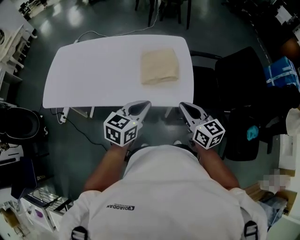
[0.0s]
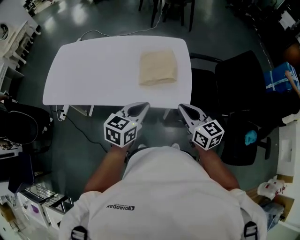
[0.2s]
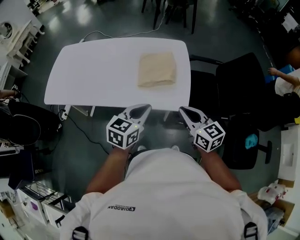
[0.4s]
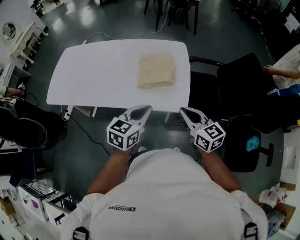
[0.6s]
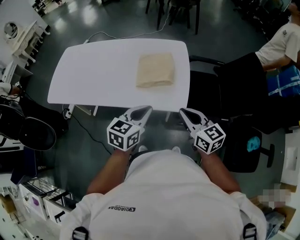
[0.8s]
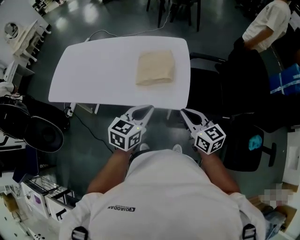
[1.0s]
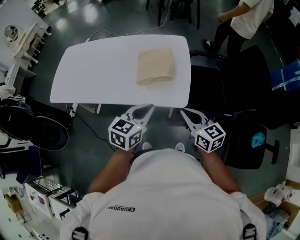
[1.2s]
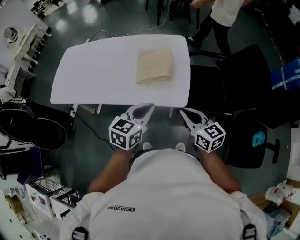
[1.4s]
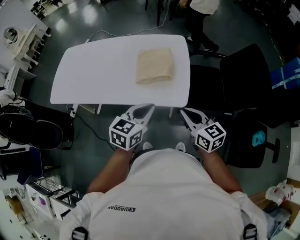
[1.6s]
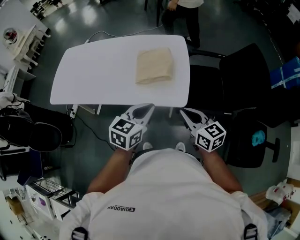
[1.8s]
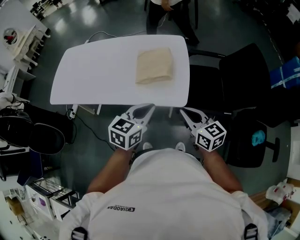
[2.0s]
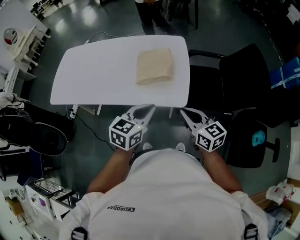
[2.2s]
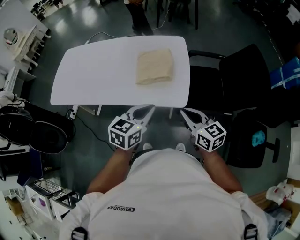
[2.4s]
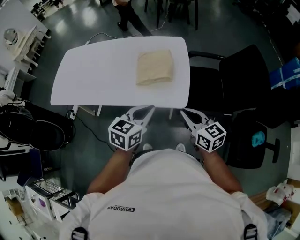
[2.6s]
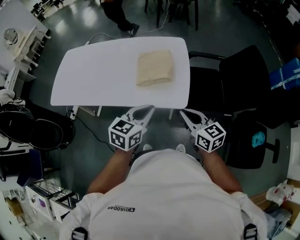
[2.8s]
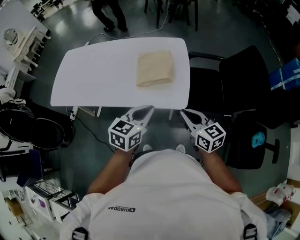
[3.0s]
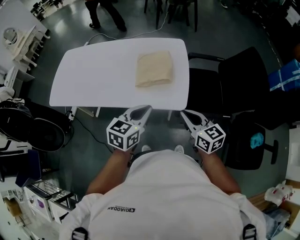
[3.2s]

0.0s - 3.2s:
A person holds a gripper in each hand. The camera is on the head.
0.0s - 1.6s: Both grippers travel together to the right, about 10 cm.
1.6s - 3.2s: There are only small adjustments of the grippers.

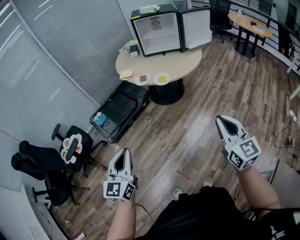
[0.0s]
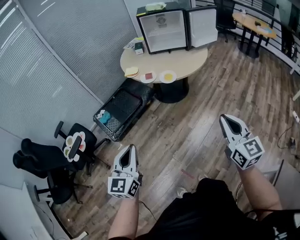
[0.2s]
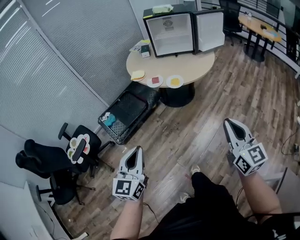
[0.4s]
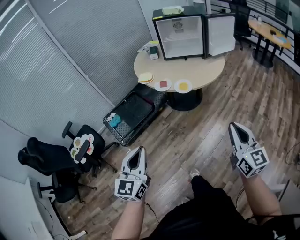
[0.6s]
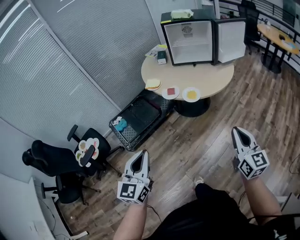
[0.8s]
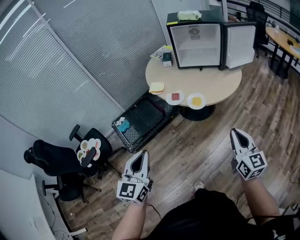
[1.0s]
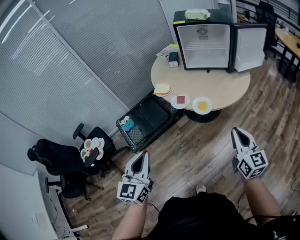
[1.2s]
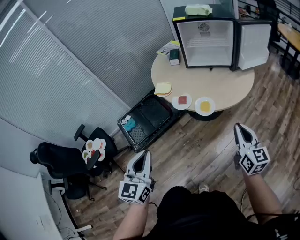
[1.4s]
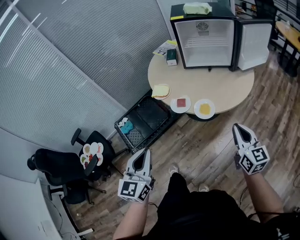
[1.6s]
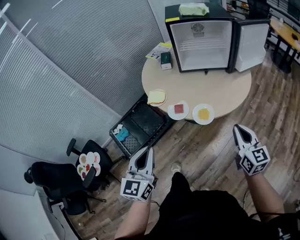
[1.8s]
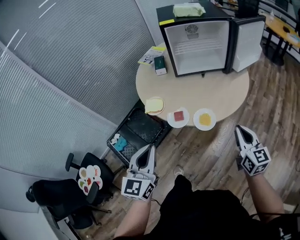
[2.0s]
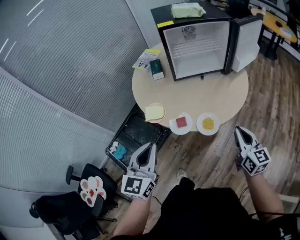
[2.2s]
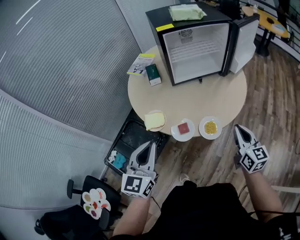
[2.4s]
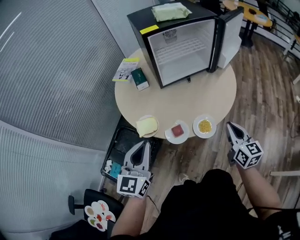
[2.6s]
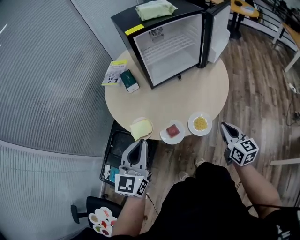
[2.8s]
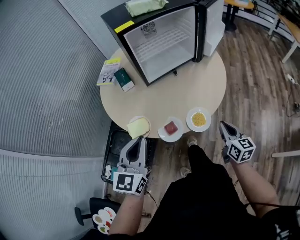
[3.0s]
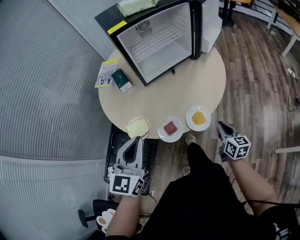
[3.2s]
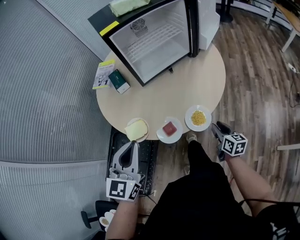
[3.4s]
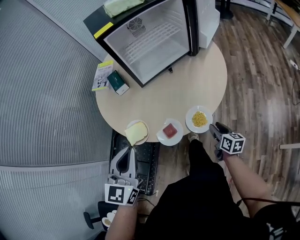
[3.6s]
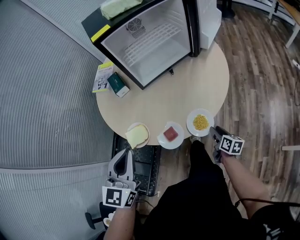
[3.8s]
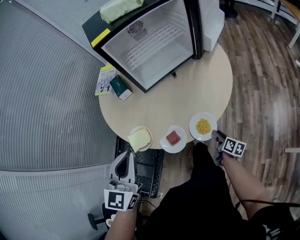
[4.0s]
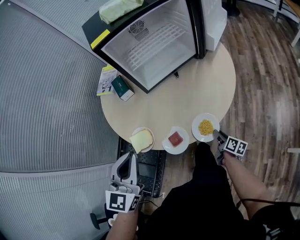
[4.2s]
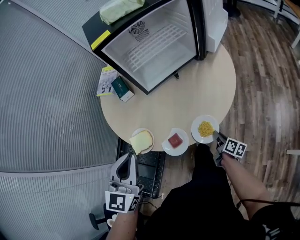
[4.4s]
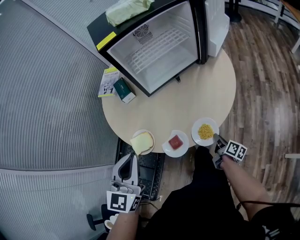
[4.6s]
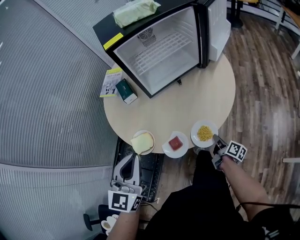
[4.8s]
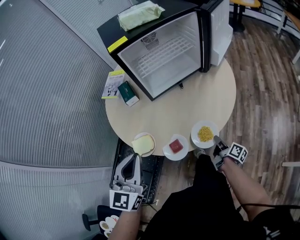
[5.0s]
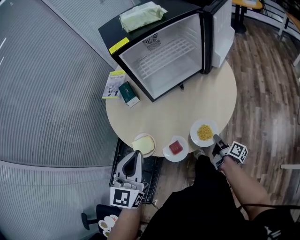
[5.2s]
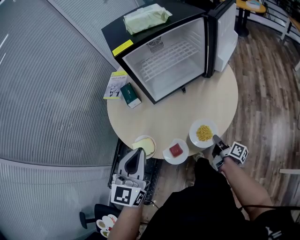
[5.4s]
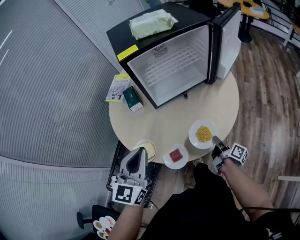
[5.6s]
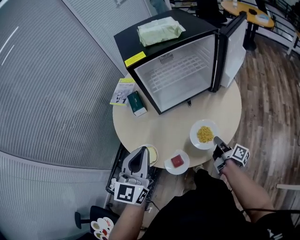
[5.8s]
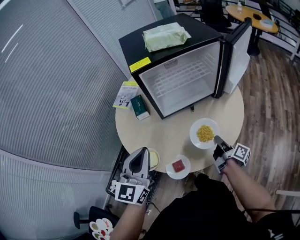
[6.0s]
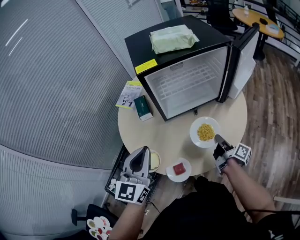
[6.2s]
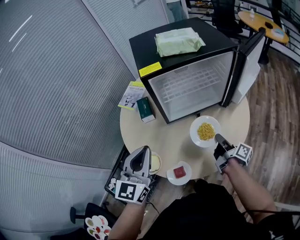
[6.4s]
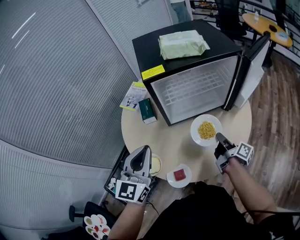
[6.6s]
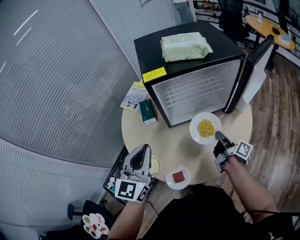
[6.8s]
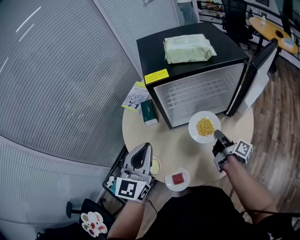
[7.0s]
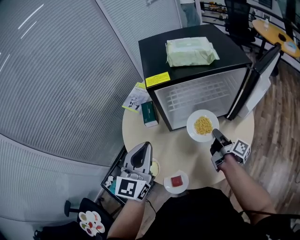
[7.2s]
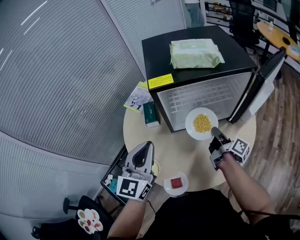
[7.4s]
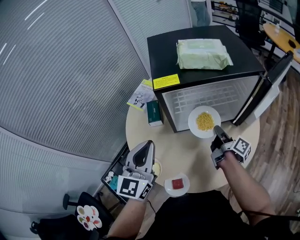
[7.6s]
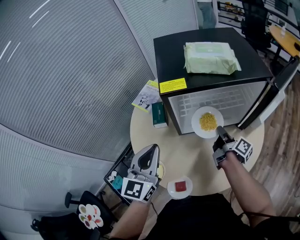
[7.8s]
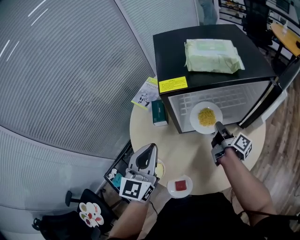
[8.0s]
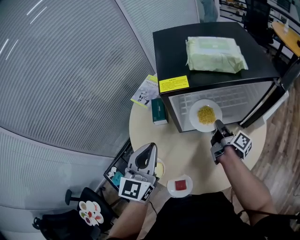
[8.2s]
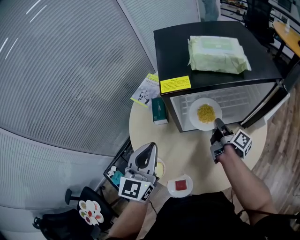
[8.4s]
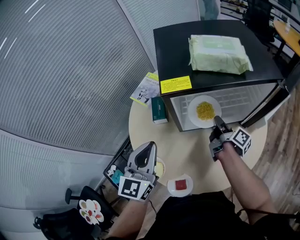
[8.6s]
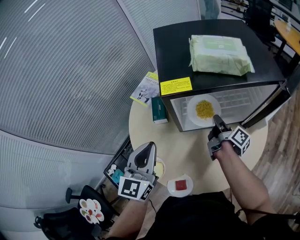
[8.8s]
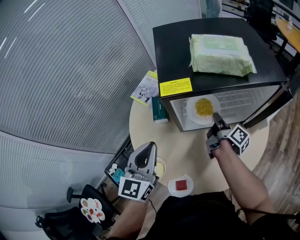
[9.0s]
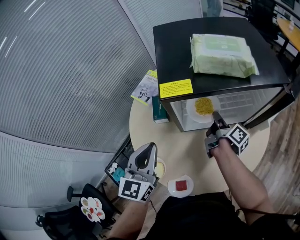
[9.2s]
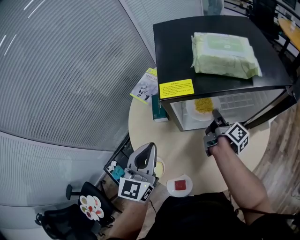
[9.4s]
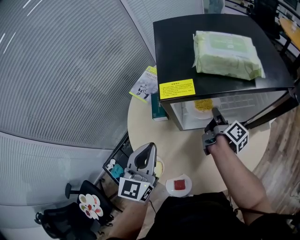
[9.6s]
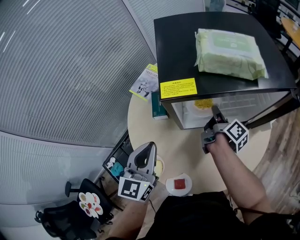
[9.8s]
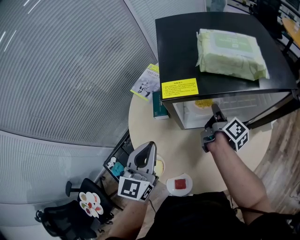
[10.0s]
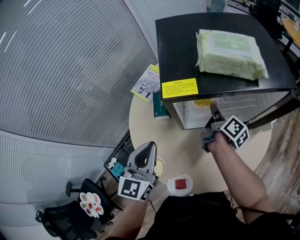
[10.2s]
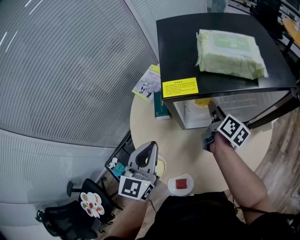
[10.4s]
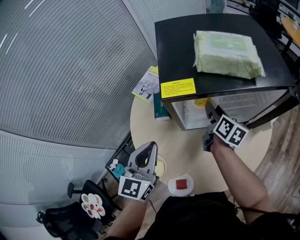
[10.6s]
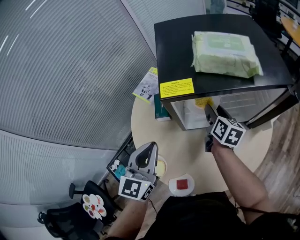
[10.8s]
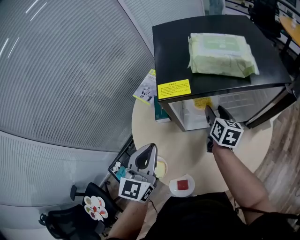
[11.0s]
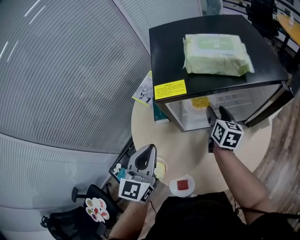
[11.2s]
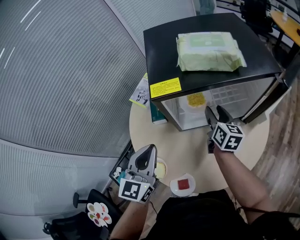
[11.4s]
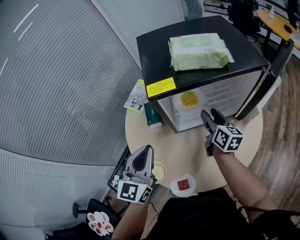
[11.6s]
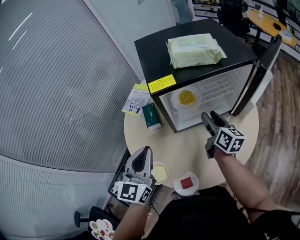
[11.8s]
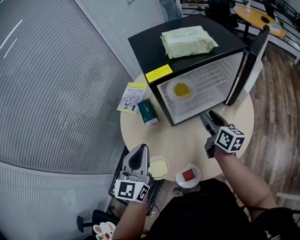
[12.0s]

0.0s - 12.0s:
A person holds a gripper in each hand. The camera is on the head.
0.0s - 1.6s: The grippers both shift forward by about 35 cm.
1.6s - 3.0s: The left gripper shifts by about 35 cm, and rotates some 40 degrees; the right gripper changes place by about 20 cm, and changes its angle by roughly 40 degrees.
3.0s - 4.4s: The left gripper moves forward, about 5 cm; the right gripper goes some 20 cm downward, and rolls clockwise, seen from behind, by about 40 degrees.
4.4s - 6.0s: The right gripper travels upward and forward by roughly 20 cm, and changes its angle by roughly 20 degrees, while the left gripper moves forward, roughly 5 cm.
6.0s - 7.6s: The left gripper shifts roughly 10 cm forward. Meanwhile the right gripper moves forward, about 20 cm.
7.6s - 9.0s: The left gripper ends up some 5 cm from where it was. Meanwhile the right gripper shifts about 10 cm forward.
9.0s - 10.4s: The right gripper changes place by roughly 5 cm, and swivels about 30 degrees.
10.4s - 12.0s: The right gripper moves backward, about 15 cm, turns by some 20 degrees, and opens up; the left gripper is displaced backward by some 5 cm.

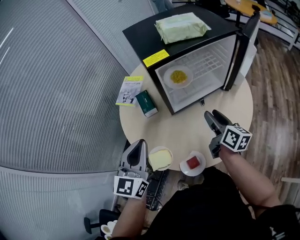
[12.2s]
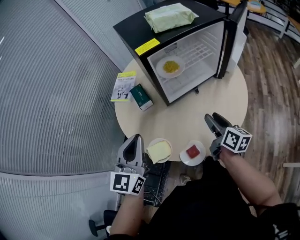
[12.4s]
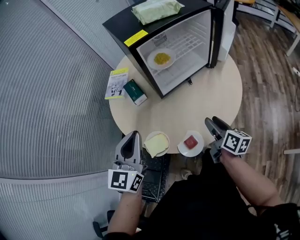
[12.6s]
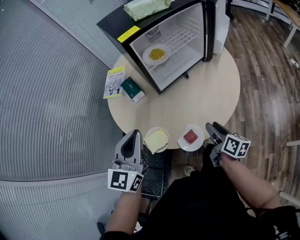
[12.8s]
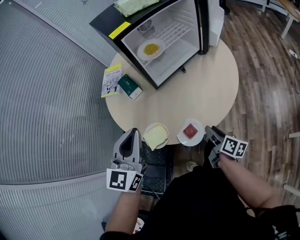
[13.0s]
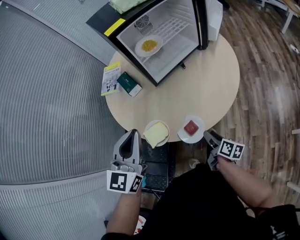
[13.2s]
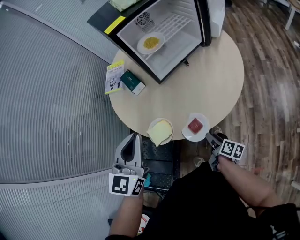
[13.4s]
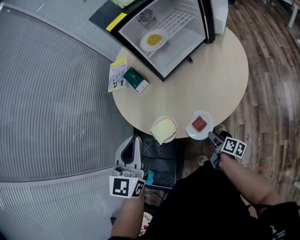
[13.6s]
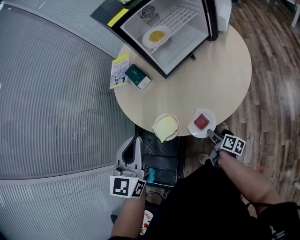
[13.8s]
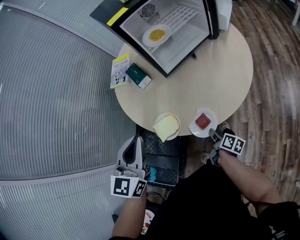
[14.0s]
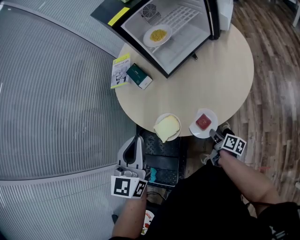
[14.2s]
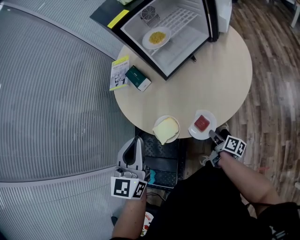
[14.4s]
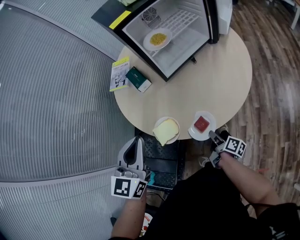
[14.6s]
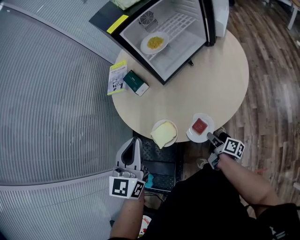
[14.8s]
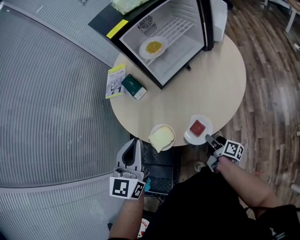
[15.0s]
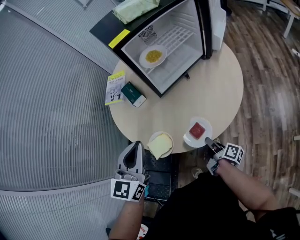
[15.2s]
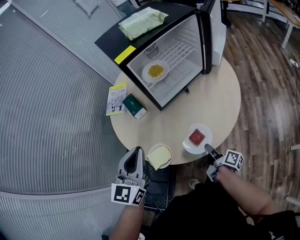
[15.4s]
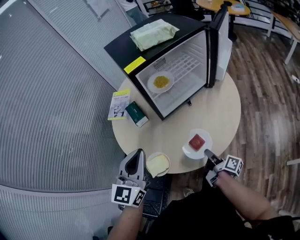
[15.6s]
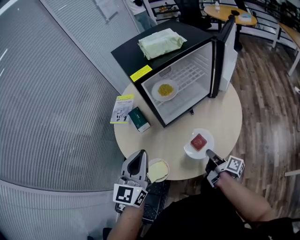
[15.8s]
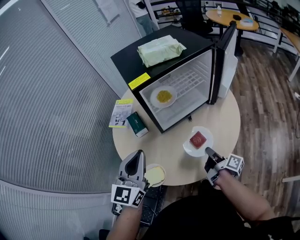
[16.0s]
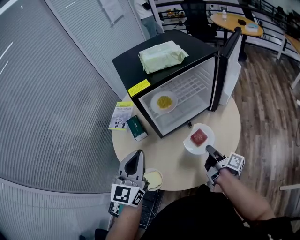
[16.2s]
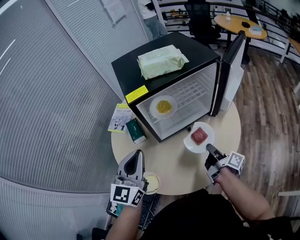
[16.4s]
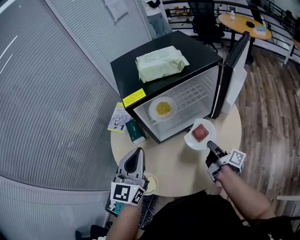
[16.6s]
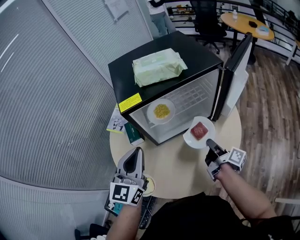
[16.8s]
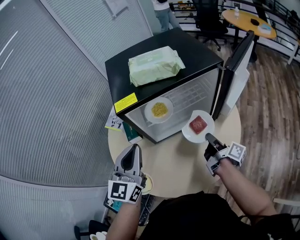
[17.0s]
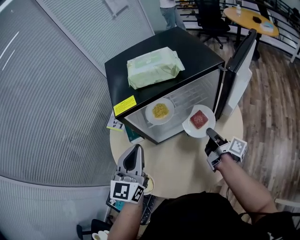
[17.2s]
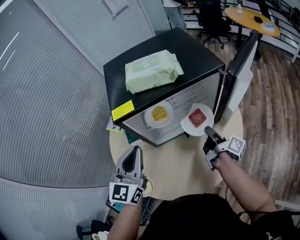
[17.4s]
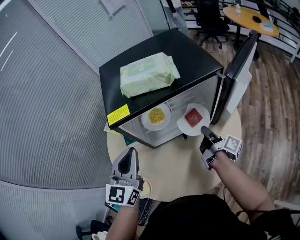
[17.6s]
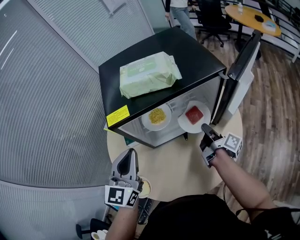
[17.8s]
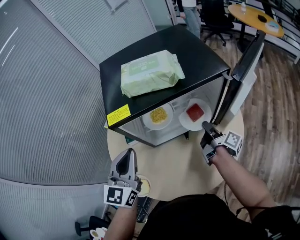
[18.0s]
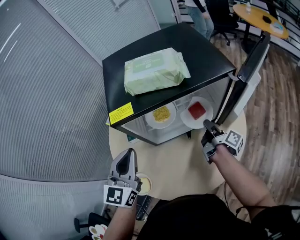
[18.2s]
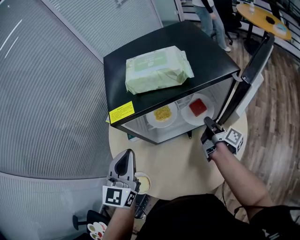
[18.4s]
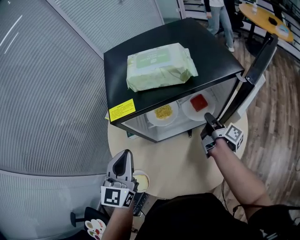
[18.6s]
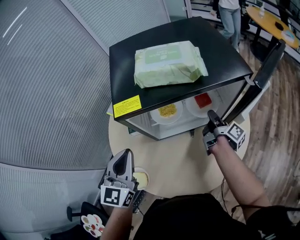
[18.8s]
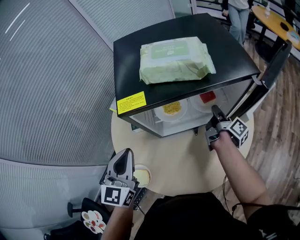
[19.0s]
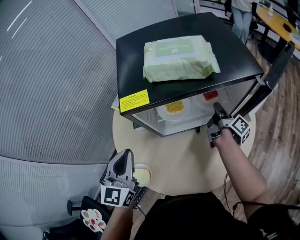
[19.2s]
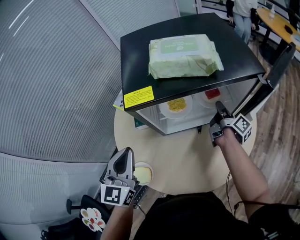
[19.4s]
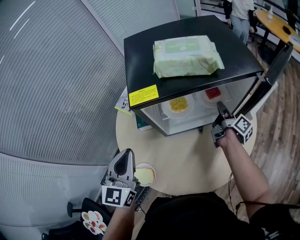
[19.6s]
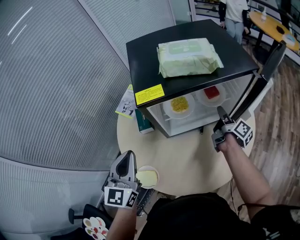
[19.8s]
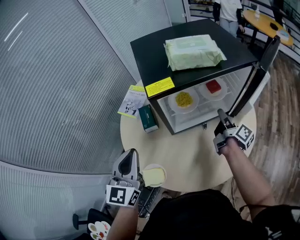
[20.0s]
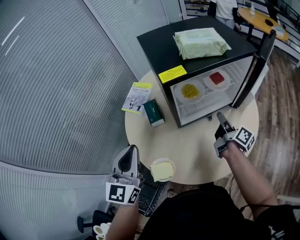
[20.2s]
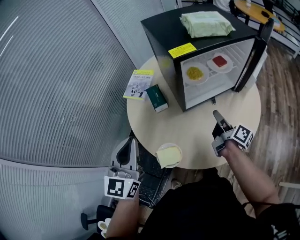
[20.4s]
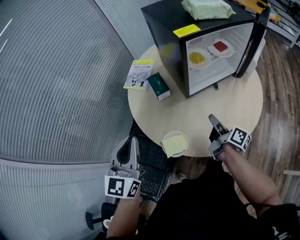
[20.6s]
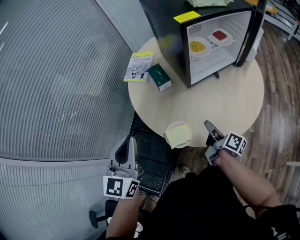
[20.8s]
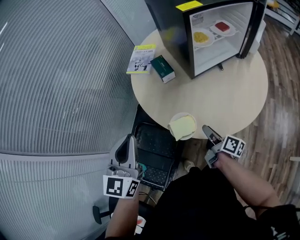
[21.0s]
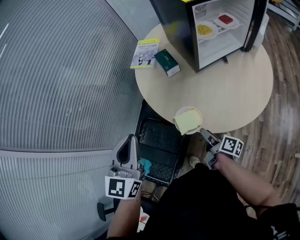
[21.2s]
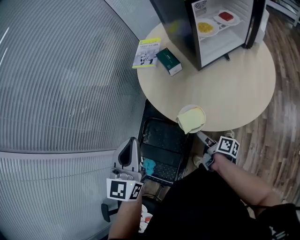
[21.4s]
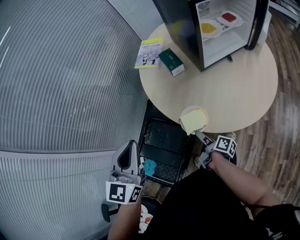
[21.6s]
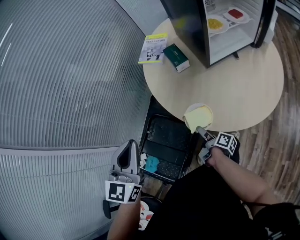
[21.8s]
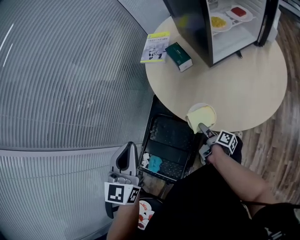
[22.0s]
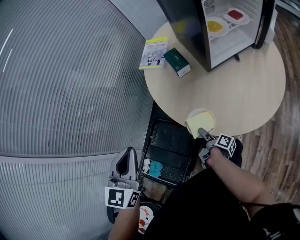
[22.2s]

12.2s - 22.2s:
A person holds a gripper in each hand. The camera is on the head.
12.2s - 13.6s: The left gripper heads backward, covering about 10 cm, while the right gripper heads downward and backward, covering roughly 40 cm, and swivels about 40 degrees.
13.6s - 15.0s: The right gripper changes place by some 5 cm, and closes its fingers.
15.0s - 16.4s: The right gripper goes approximately 30 cm forward, upward and to the right. Meanwhile the left gripper is displaced forward, to the right and upward by roughly 20 cm.
16.4s - 18.0s: The left gripper moves forward, about 10 cm. Meanwhile the right gripper heads forward, covering about 20 cm.
18.0s - 19.4s: The left gripper travels to the left by about 5 cm. Meanwhile the right gripper is displaced forward by roughly 10 cm.
19.4s - 20.8s: The left gripper moves to the left and backward, roughly 30 cm. The right gripper goes roughly 50 cm backward and to the left.
20.8s - 22.2s: The right gripper heads downward and to the left, covering roughly 25 cm, changes its angle by about 30 degrees, and opens. Meanwhile the left gripper heads to the left, covering some 10 cm.
